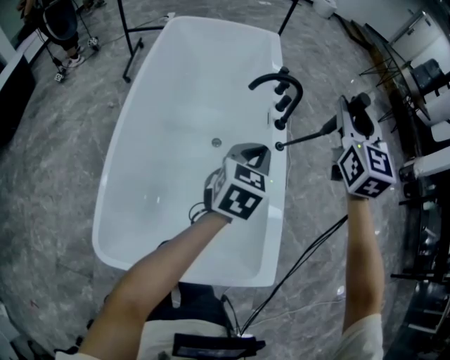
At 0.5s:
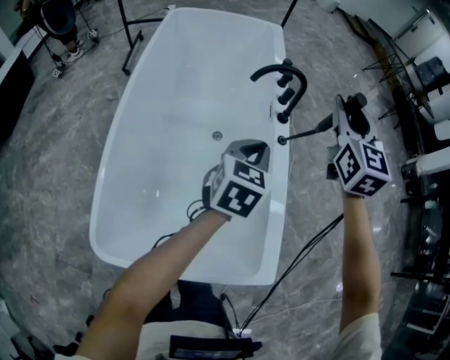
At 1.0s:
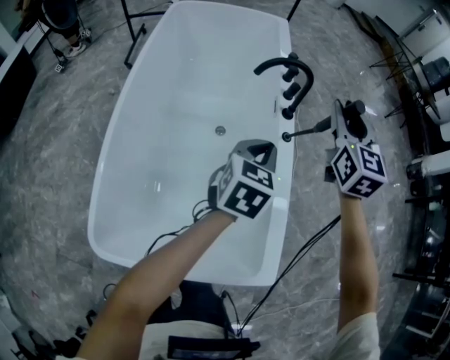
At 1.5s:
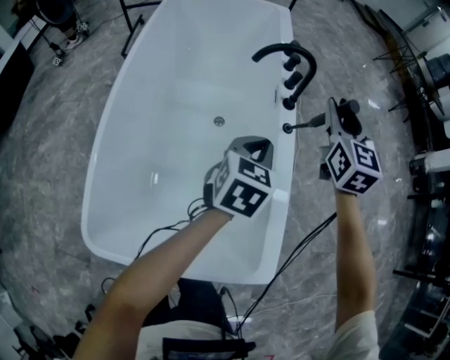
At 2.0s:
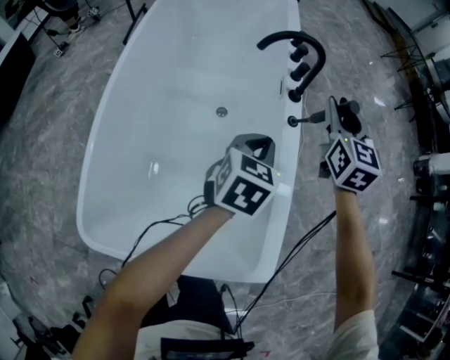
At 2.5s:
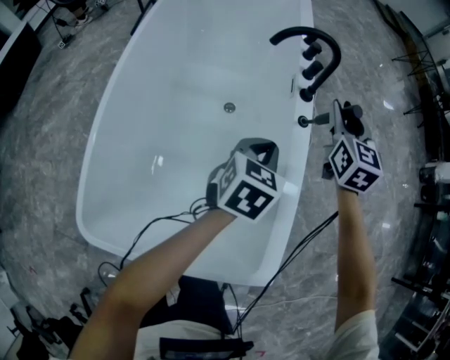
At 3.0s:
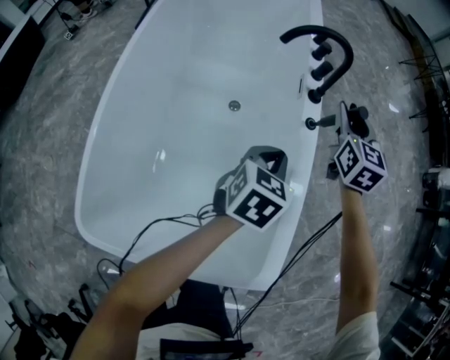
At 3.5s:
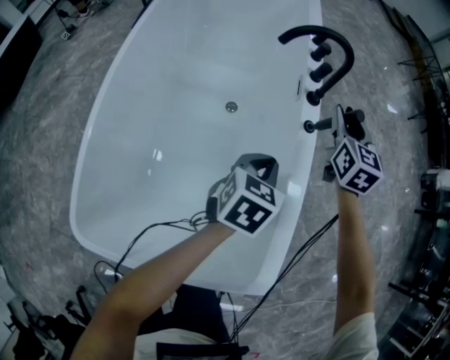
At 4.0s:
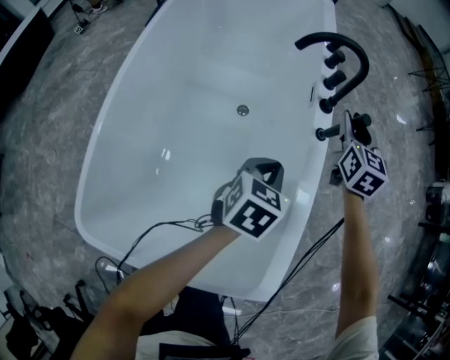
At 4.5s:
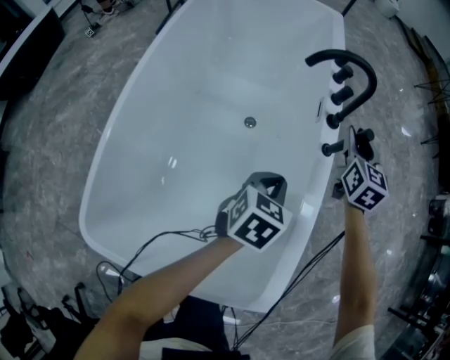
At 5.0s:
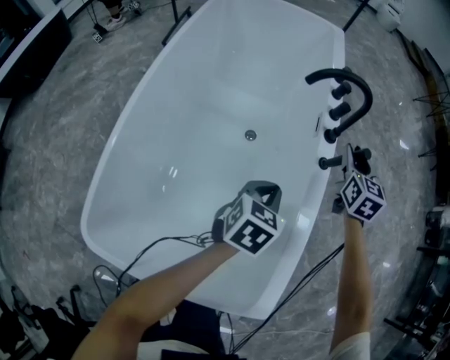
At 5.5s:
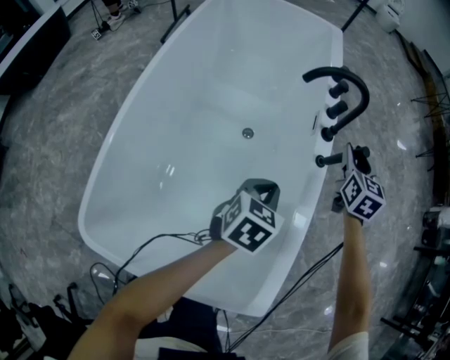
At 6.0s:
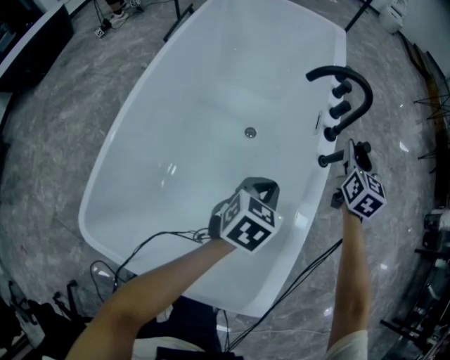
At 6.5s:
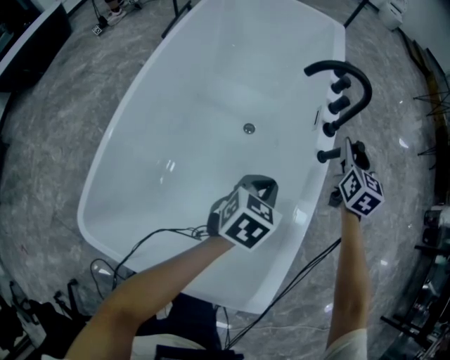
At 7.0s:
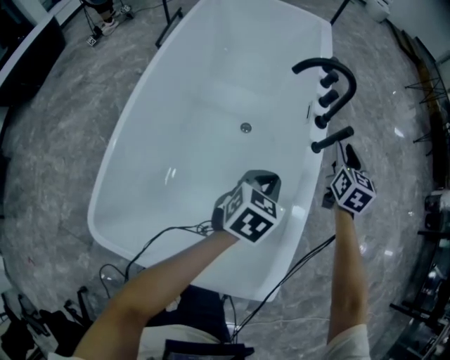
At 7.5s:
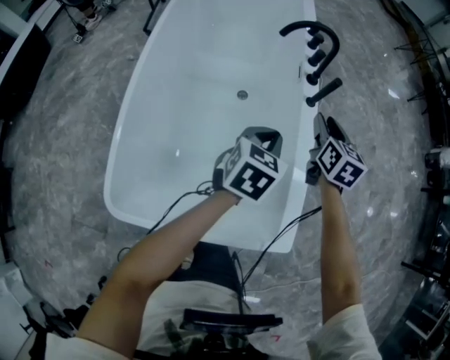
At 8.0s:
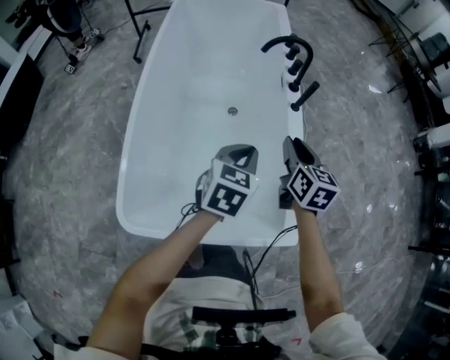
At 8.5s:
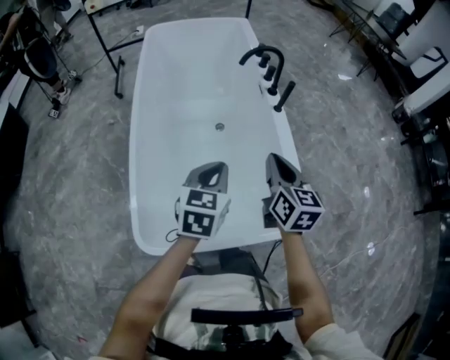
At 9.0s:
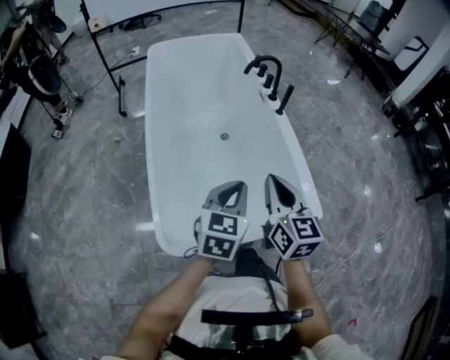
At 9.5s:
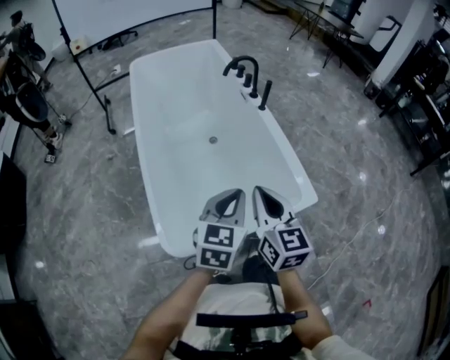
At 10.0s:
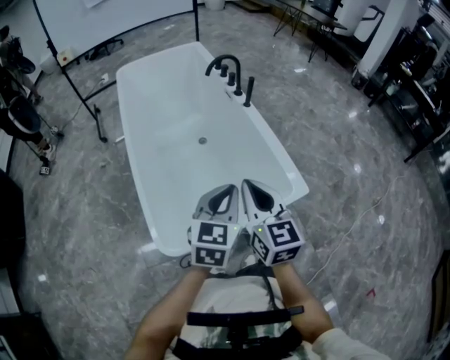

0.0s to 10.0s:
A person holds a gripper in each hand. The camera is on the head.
0.0s to 2.0s: The right gripper goes some 20 cm downward; the left gripper travels downward by roughly 10 cm.
2.0s to 4.0s: The right gripper goes roughly 10 cm downward and forward. The left gripper moves downward, roughly 10 cm.
4.0s to 6.0s: There are only small adjustments of the grippers.
6.0s to 8.0s: The left gripper is displaced upward and backward by roughly 20 cm. Meanwhile the right gripper moves backward, roughly 30 cm.
8.0s to 10.0s: Both grippers move backward, approximately 30 cm. The right gripper swivels about 20 degrees, and closes; the left gripper swivels approximately 20 degrees.

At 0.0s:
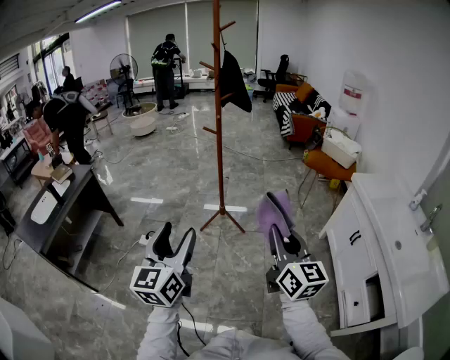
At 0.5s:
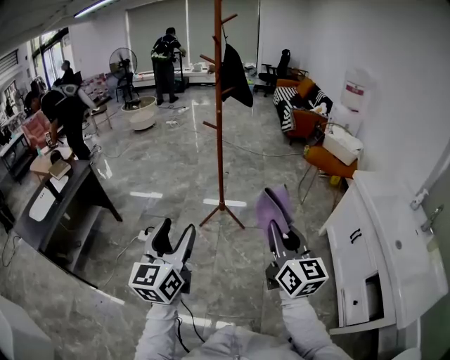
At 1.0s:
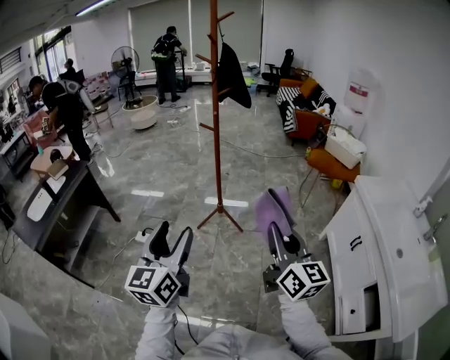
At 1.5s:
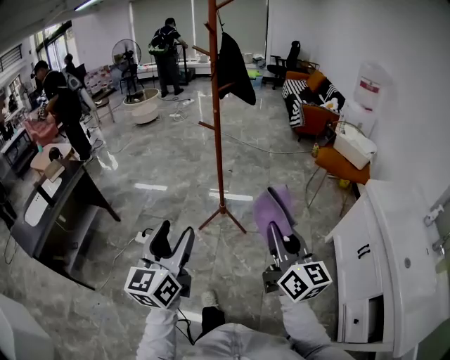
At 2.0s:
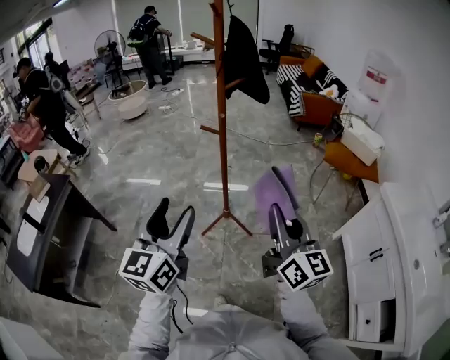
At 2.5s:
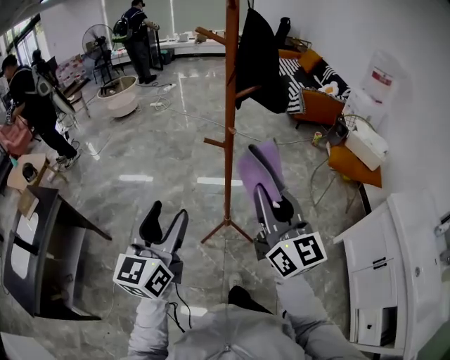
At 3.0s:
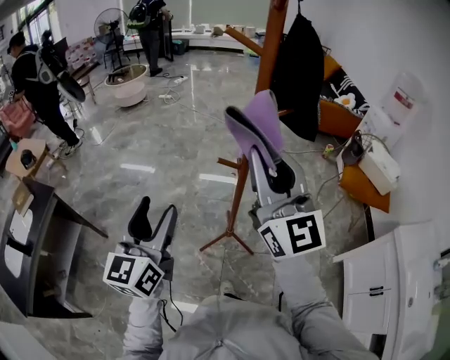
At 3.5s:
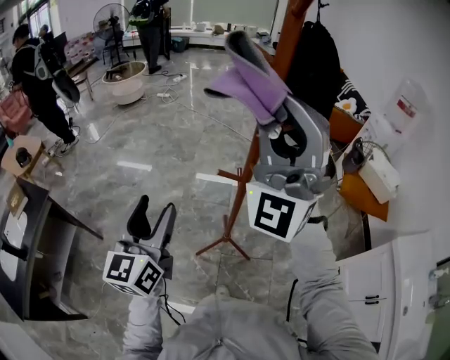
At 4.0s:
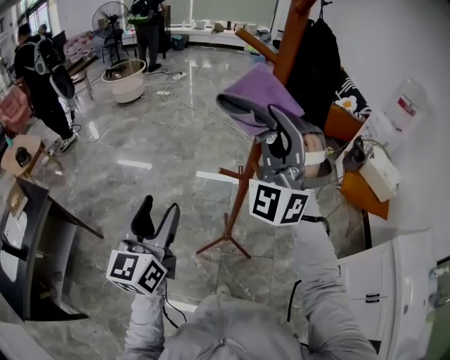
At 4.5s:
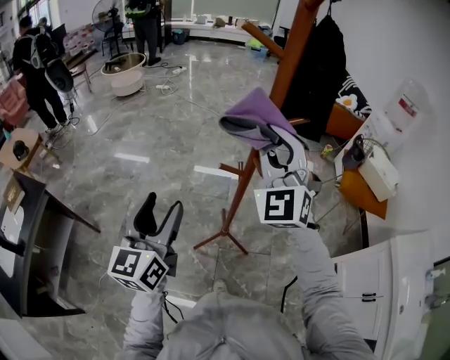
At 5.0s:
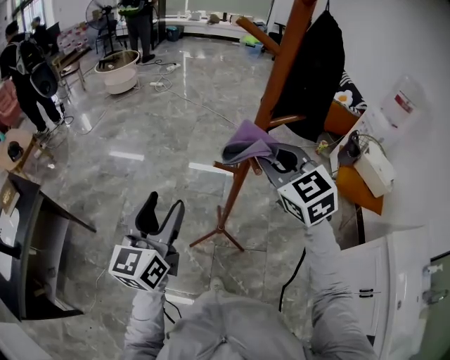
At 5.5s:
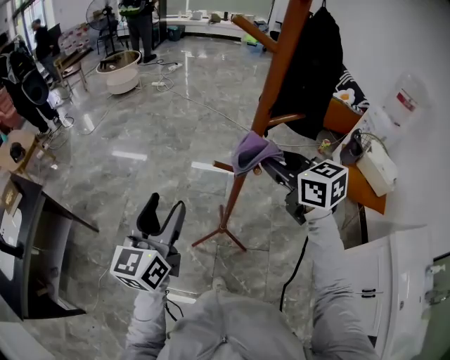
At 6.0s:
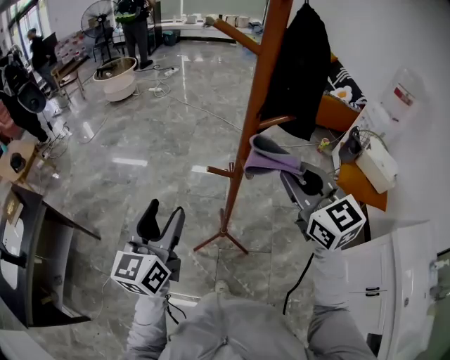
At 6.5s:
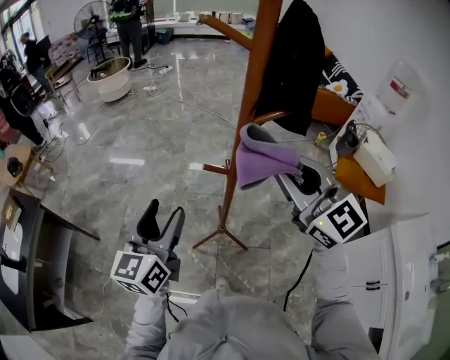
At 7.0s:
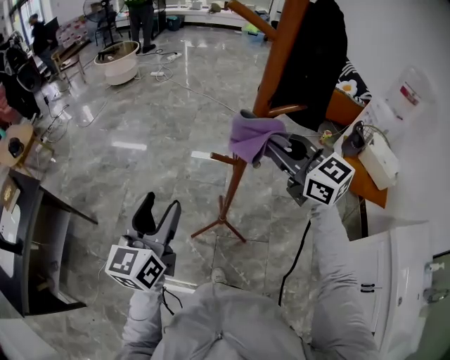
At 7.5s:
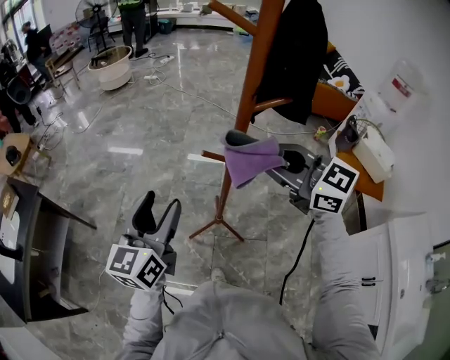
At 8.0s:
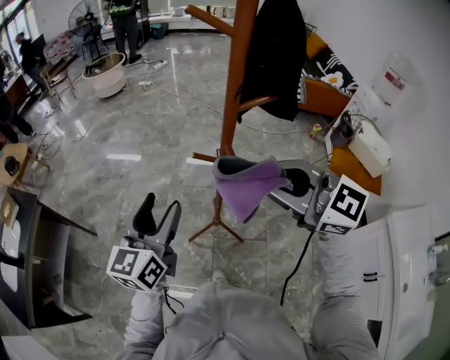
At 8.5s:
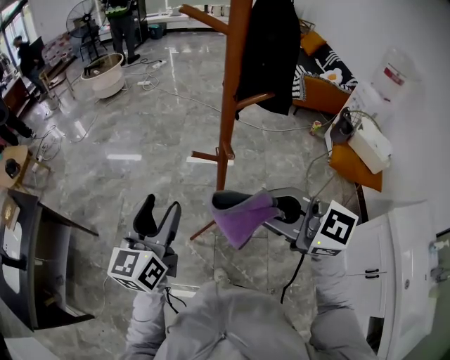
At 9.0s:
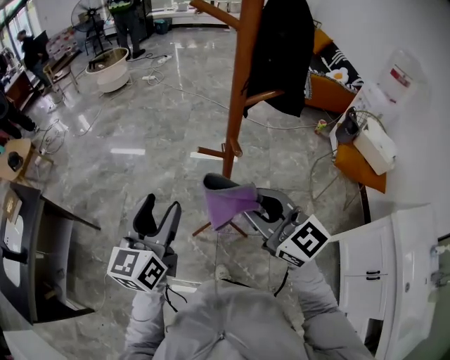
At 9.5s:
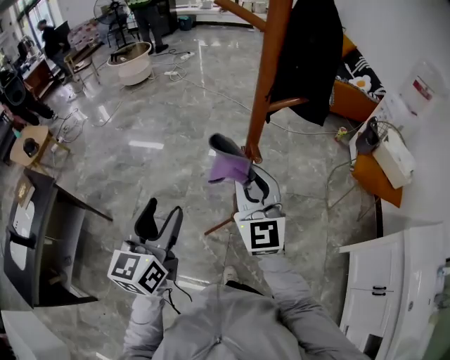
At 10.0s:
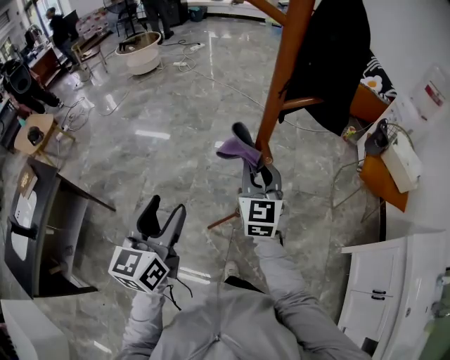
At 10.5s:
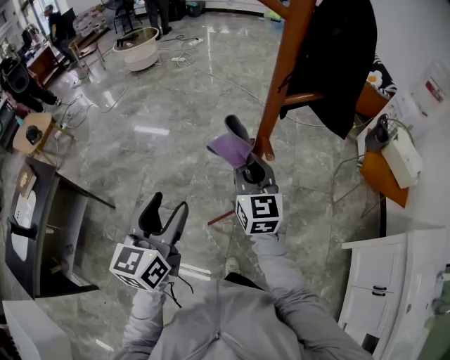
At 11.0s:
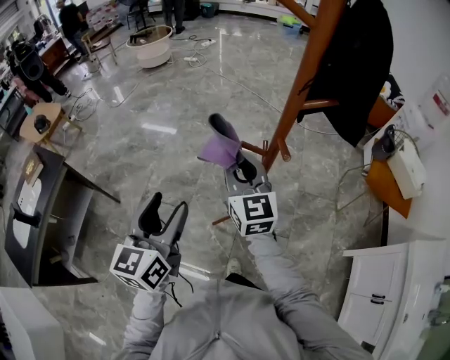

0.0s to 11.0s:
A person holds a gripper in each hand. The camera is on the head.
0.0s to 2.0s: The two grippers go approximately 30 cm forward.
2.0s to 3.5s: The right gripper goes approximately 40 cm forward, upward and to the left, and rolls counterclockwise, seen from behind, by about 80 degrees. Meanwhile the left gripper shifts approximately 30 cm forward.
3.5s to 5.5s: The right gripper heads downward, covering about 25 cm, and tips its fingers downward by roughly 50 degrees.
5.5s to 7.5s: The right gripper goes roughly 5 cm backward, and turns by approximately 20 degrees.
7.5s to 9.0s: The right gripper shifts about 5 cm backward.
9.0s to 11.0s: The left gripper moves to the left, roughly 5 cm. Meanwhile the right gripper travels forward, to the left and downward by roughly 20 cm.

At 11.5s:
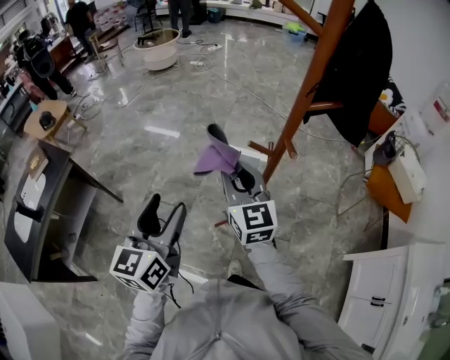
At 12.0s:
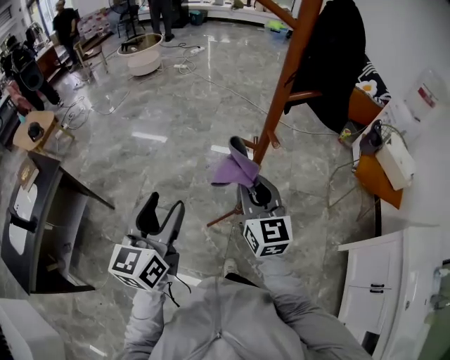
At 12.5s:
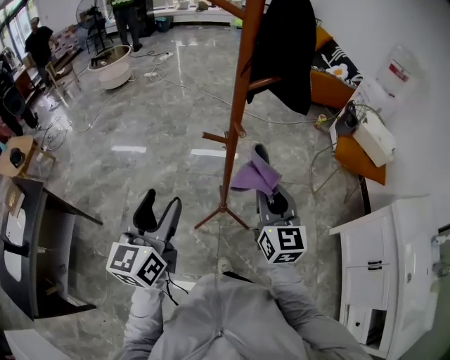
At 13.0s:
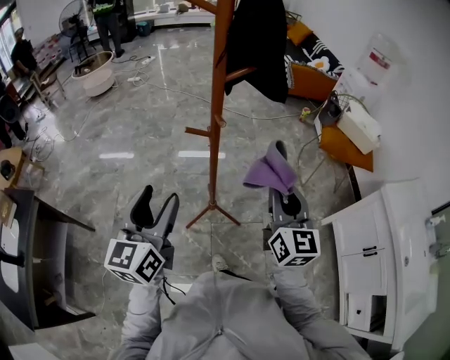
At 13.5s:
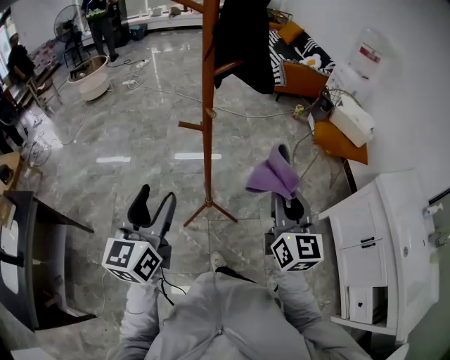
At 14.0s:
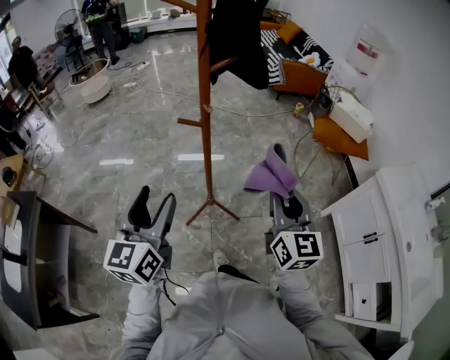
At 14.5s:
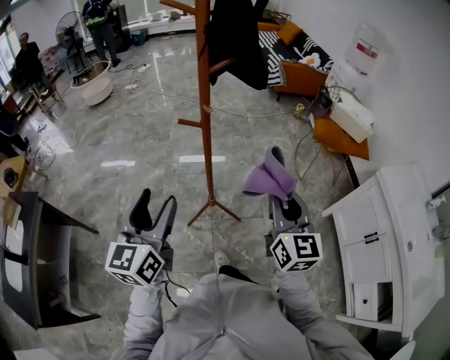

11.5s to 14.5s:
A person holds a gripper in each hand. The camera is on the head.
11.5s to 13.0s: The right gripper moves to the right and backward, some 30 cm, and swivels some 30 degrees, while the left gripper is displaced to the right by some 10 cm.
13.0s to 14.5s: Both grippers move backward, roughly 5 cm.

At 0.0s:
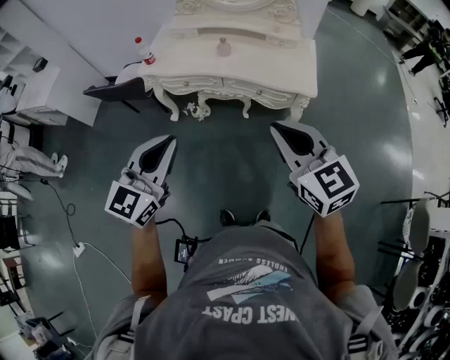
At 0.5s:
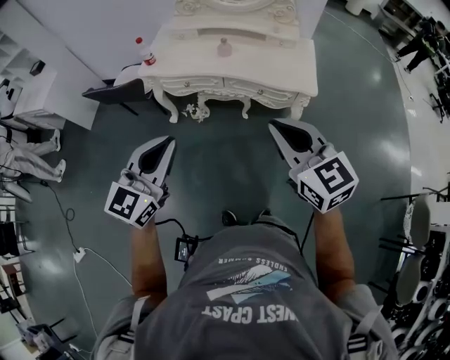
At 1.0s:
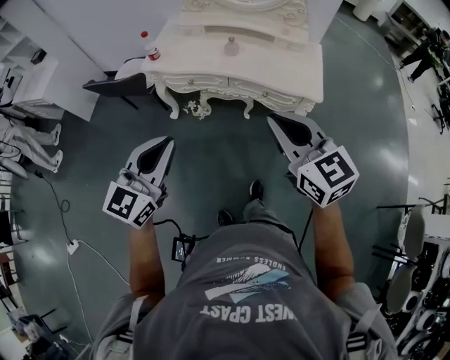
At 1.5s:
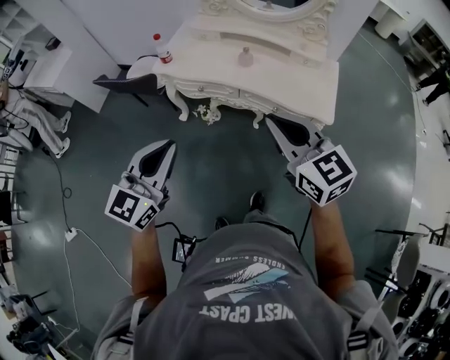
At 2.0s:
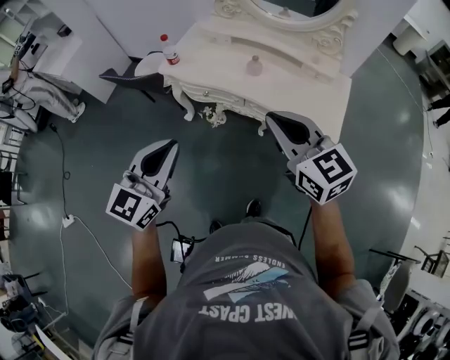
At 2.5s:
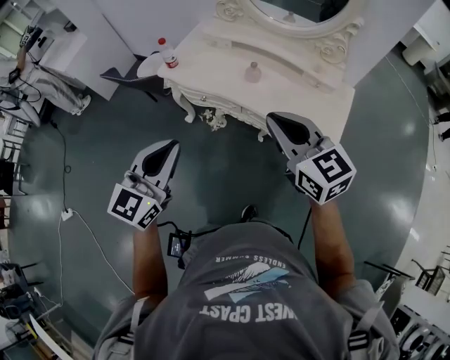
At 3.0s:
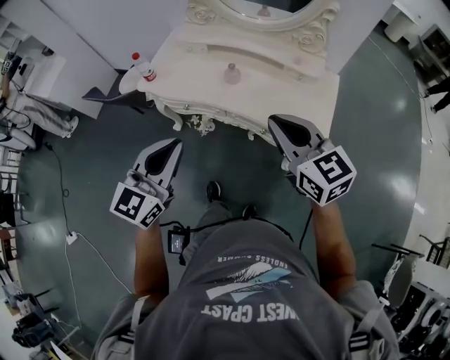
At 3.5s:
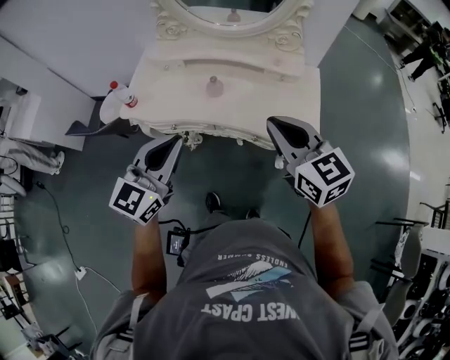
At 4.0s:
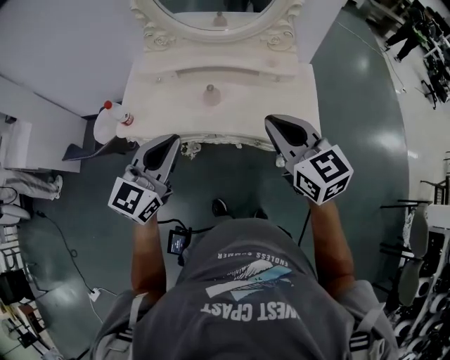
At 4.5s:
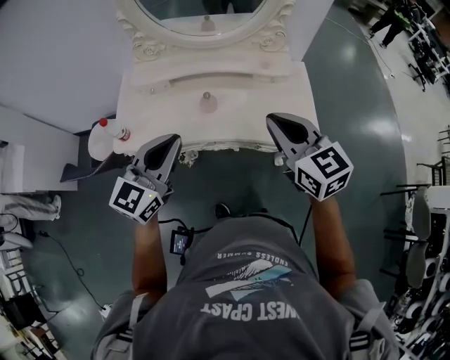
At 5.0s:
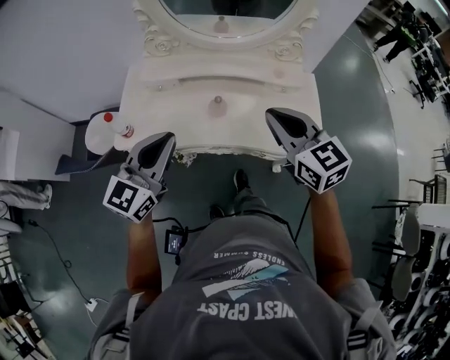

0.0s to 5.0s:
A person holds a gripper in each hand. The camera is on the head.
0.0s to 2.5s: The left gripper moves forward, approximately 15 cm. The right gripper travels forward by roughly 25 cm.
2.5s to 5.0s: The left gripper changes place by roughly 25 cm, and turns by some 30 degrees, while the right gripper shifts by approximately 15 cm, and rotates roughly 30 degrees.
